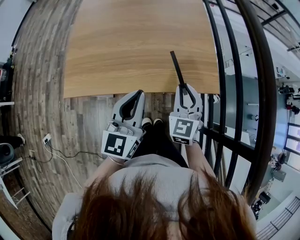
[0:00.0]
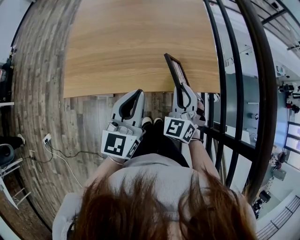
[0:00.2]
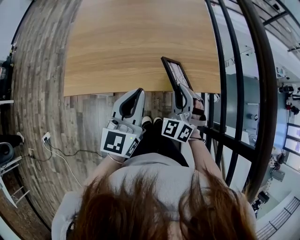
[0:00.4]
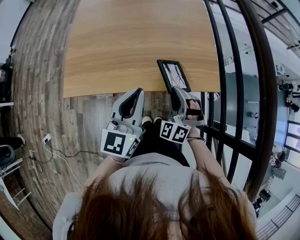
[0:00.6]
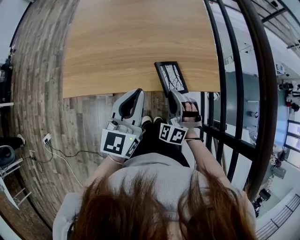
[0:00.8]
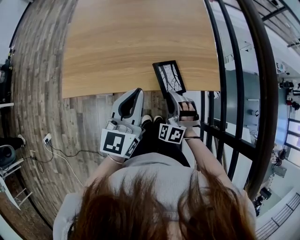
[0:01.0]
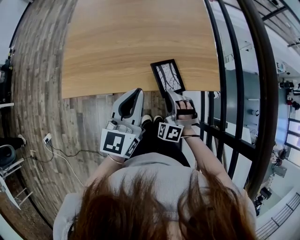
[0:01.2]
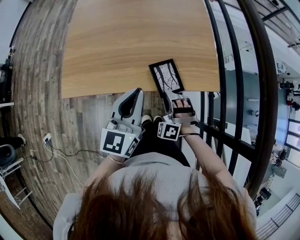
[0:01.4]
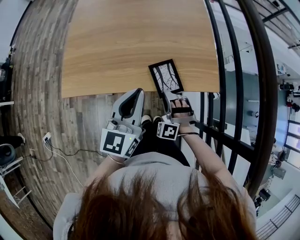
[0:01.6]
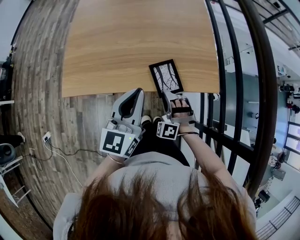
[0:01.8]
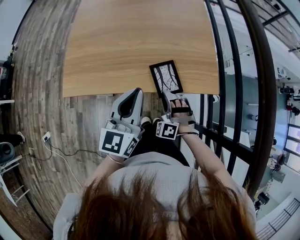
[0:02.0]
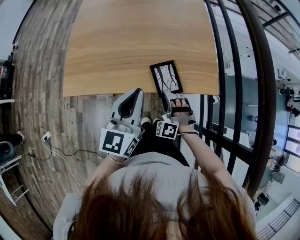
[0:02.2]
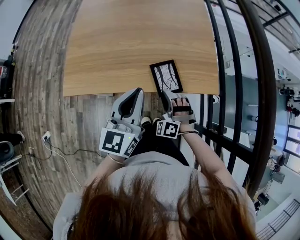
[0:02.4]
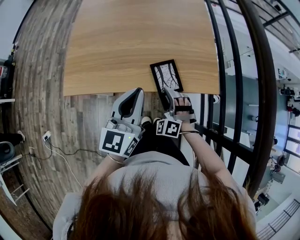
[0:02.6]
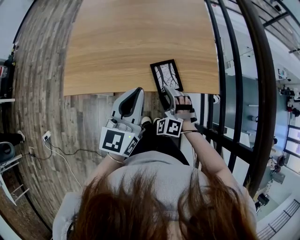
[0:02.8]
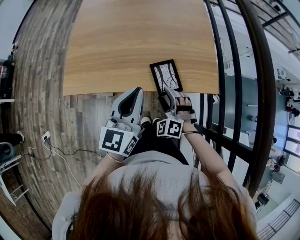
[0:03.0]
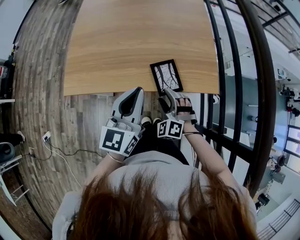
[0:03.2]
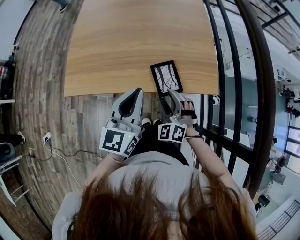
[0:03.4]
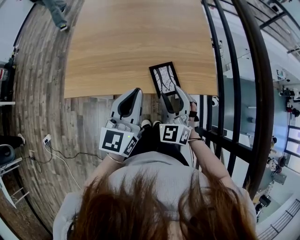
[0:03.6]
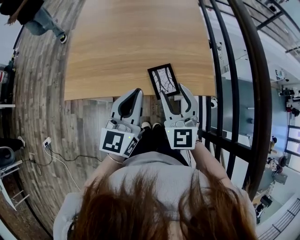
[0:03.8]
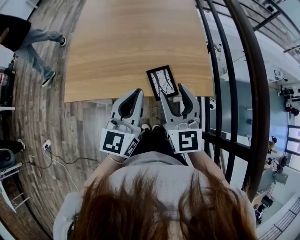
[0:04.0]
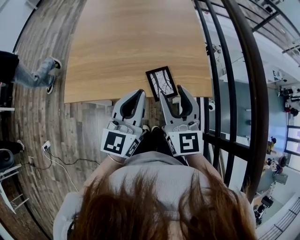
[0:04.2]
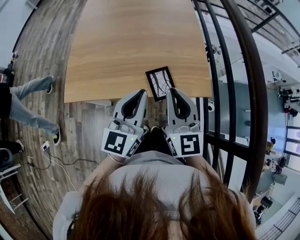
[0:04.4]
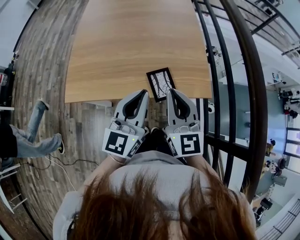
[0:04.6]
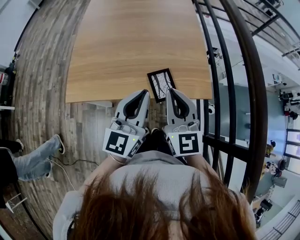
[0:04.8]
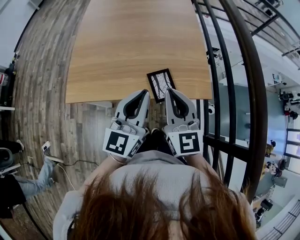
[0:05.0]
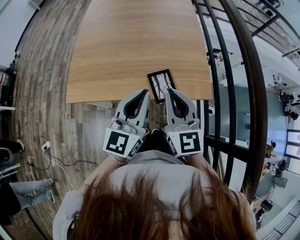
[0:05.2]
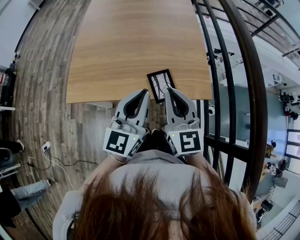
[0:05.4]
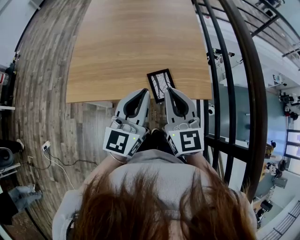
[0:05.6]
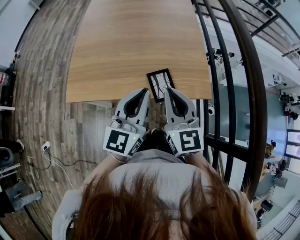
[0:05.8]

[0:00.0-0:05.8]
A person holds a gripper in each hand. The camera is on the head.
0:00.0 to 0:01.4: The right gripper goes some 15 cm downward, and rolls counterclockwise, seen from behind, by approximately 60 degrees.
0:01.4 to 0:02.8: The right gripper opens up.
0:02.8 to 0:04.4: The right gripper goes roughly 25 cm upward, twists about 60 degrees clockwise, seen from behind, and closes up.
0:04.4 to 0:05.8: The grippers stay close to where they were, moving slightly.

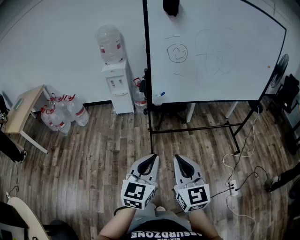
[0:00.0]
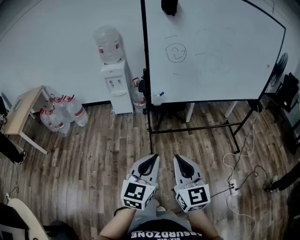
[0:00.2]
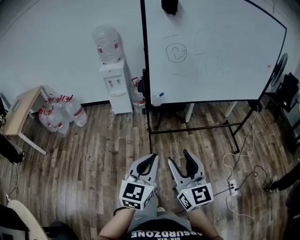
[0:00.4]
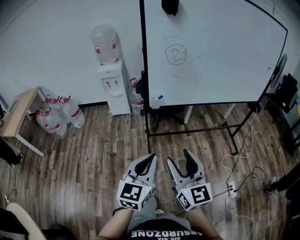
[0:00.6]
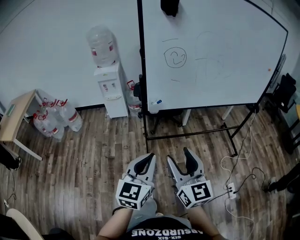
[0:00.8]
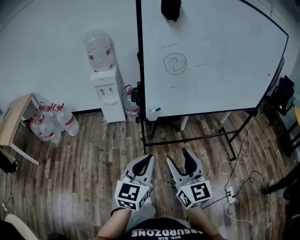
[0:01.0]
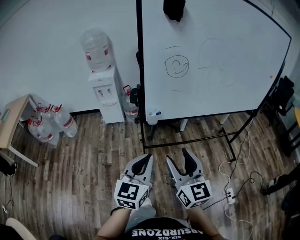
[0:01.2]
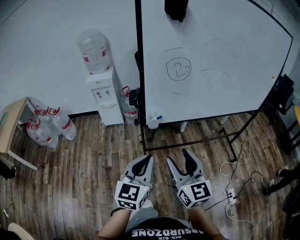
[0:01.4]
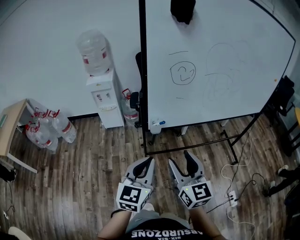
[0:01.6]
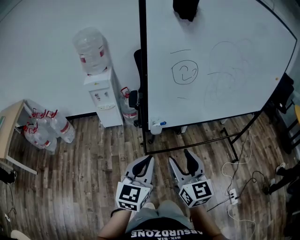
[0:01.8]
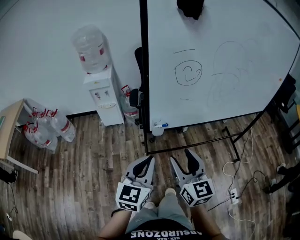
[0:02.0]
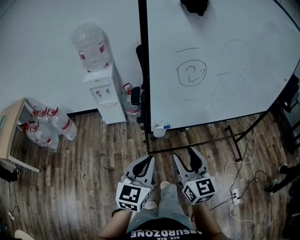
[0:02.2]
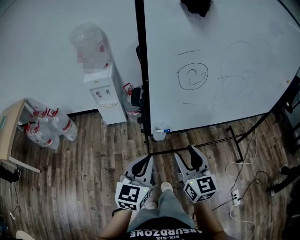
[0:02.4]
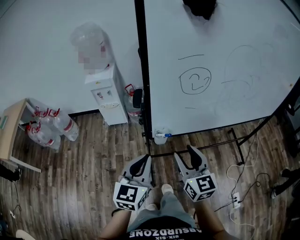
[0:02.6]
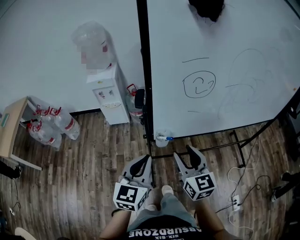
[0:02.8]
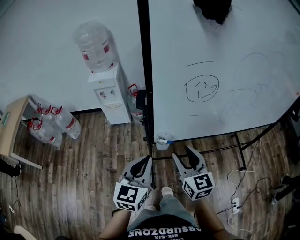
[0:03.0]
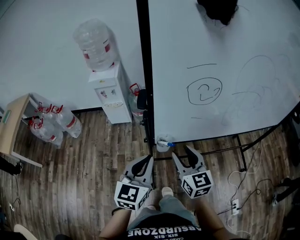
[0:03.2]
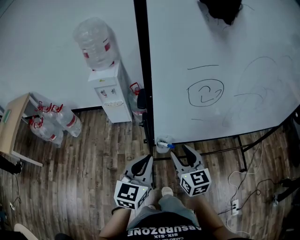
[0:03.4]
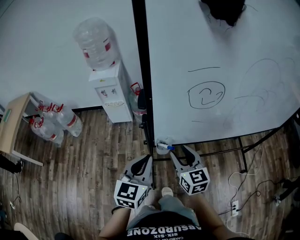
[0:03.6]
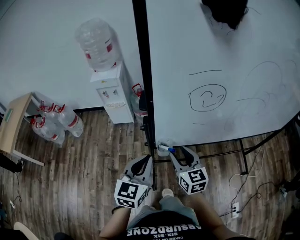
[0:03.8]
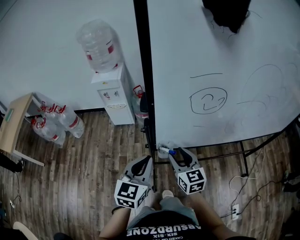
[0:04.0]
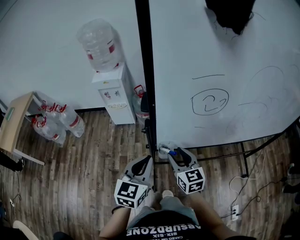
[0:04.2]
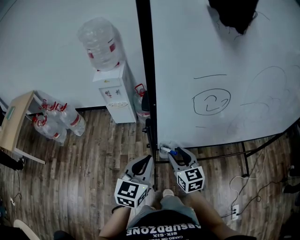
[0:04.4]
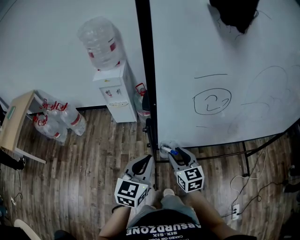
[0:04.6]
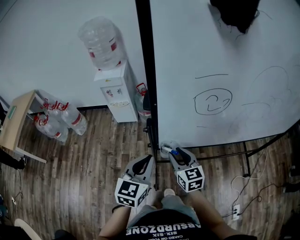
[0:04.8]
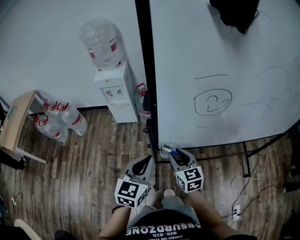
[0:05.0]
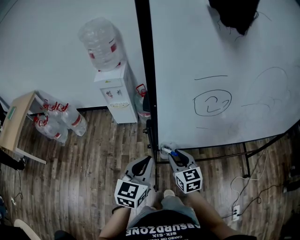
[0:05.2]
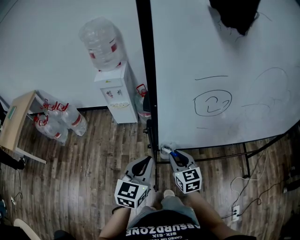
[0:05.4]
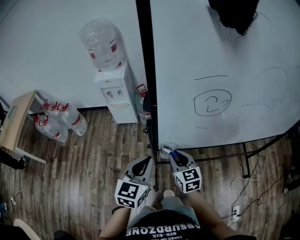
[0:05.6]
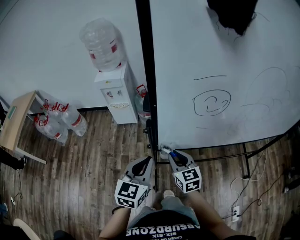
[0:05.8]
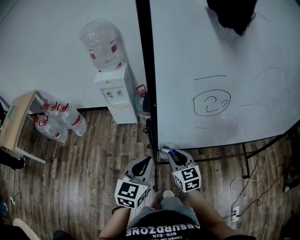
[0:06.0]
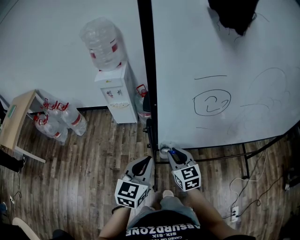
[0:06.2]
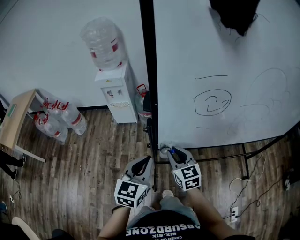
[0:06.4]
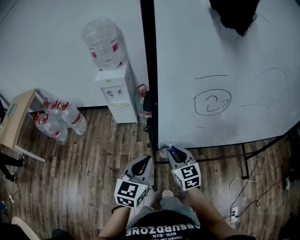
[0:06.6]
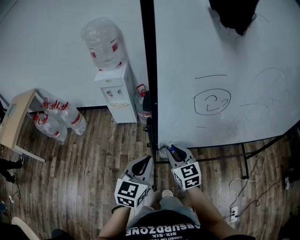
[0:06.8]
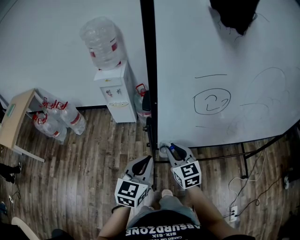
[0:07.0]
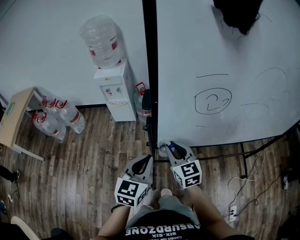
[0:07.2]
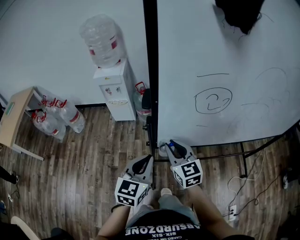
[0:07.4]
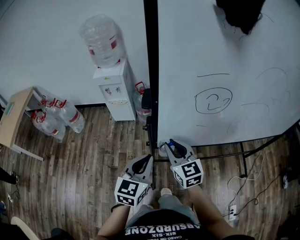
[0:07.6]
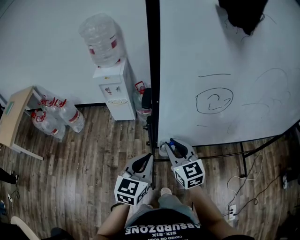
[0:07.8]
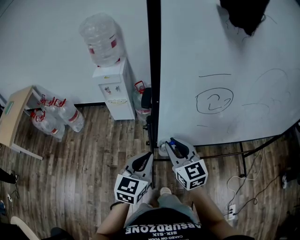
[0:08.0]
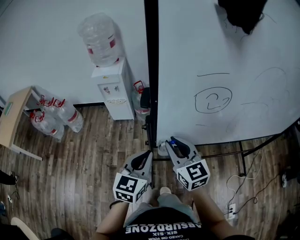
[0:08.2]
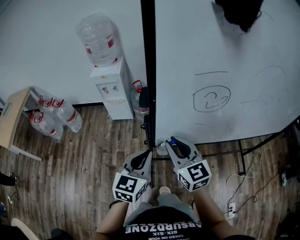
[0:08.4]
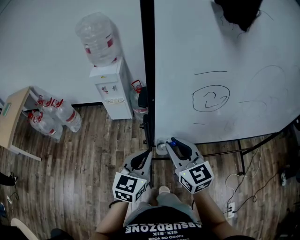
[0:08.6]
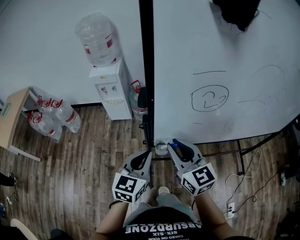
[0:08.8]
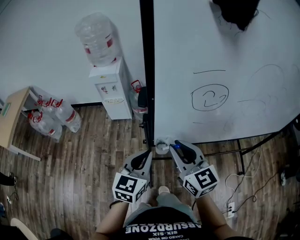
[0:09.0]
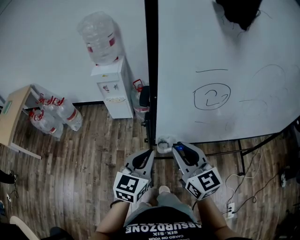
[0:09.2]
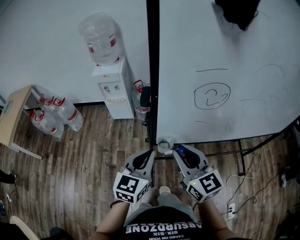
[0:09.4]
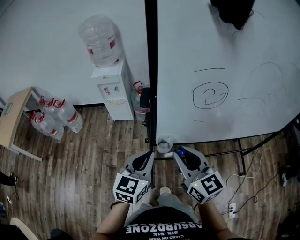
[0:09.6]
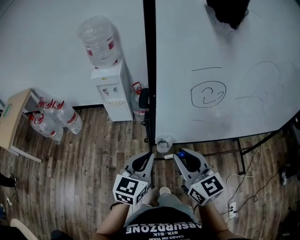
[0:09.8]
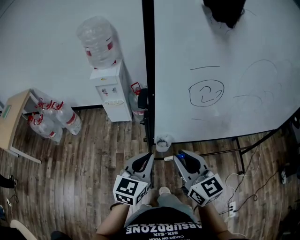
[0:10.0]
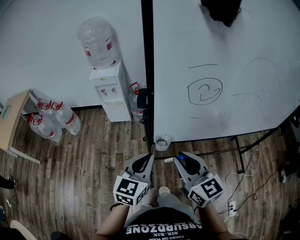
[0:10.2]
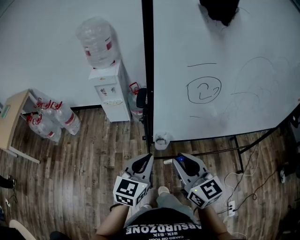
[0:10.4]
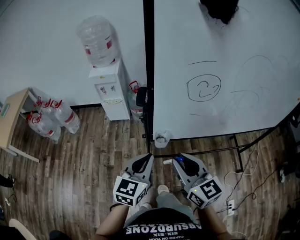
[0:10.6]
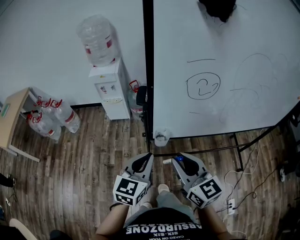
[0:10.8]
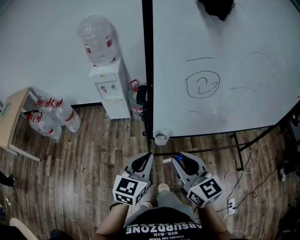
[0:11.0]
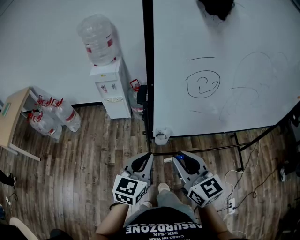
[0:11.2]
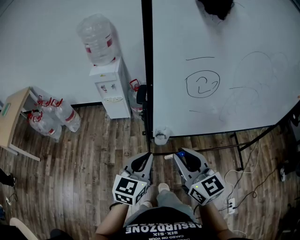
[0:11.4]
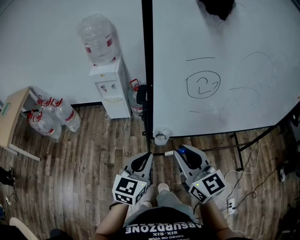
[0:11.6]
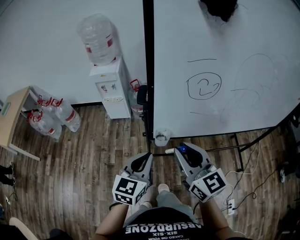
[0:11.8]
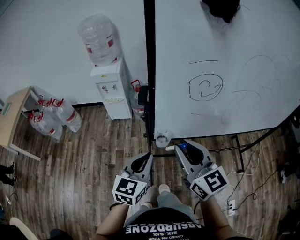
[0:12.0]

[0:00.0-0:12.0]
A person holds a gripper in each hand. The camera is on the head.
0:00.0 to 0:01.6: Both grippers move forward, some 25 cm. The right gripper opens.
0:01.6 to 0:03.0: The two grippers go approximately 15 cm forward.
0:03.0 to 0:04.4: The left gripper heads forward, covering about 5 cm; the right gripper goes some 10 cm downward and forward.
0:04.4 to 0:06.0: The right gripper closes its fingers.
0:06.0 to 0:07.6: The right gripper travels upward by about 5 cm.
0:07.6 to 0:09.0: The right gripper is displaced upward by roughly 5 cm.
0:09.0 to 0:10.4: The right gripper is displaced backward by approximately 10 cm.
0:10.4 to 0:12.0: The grippers move only a little.

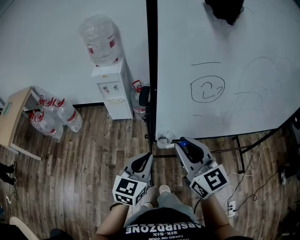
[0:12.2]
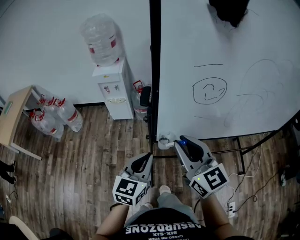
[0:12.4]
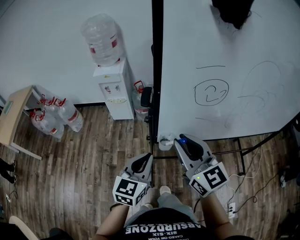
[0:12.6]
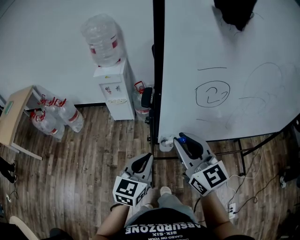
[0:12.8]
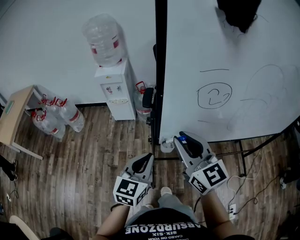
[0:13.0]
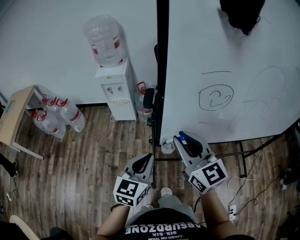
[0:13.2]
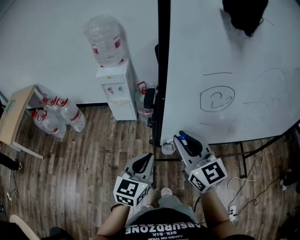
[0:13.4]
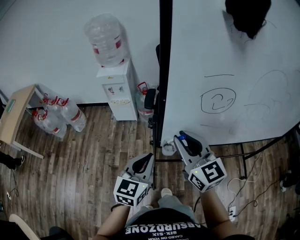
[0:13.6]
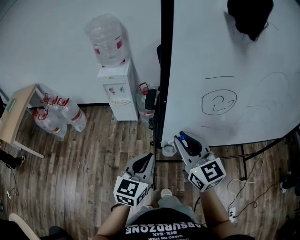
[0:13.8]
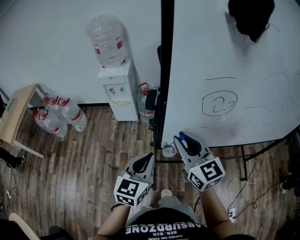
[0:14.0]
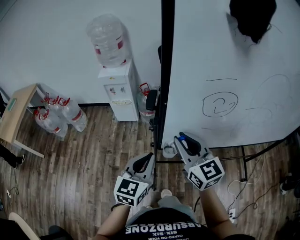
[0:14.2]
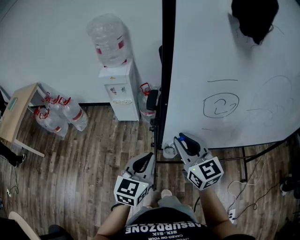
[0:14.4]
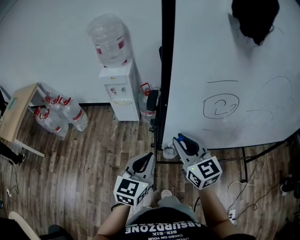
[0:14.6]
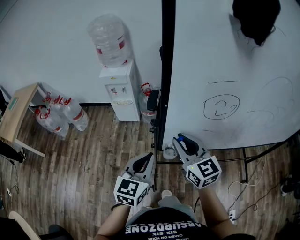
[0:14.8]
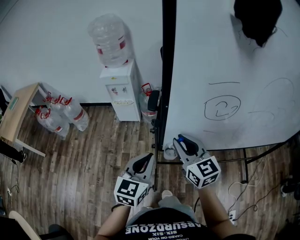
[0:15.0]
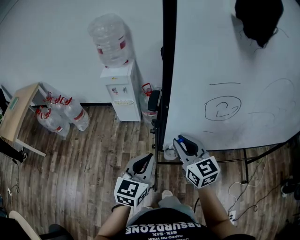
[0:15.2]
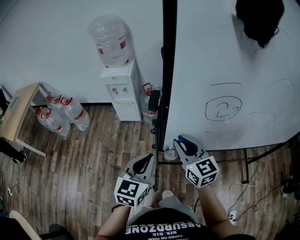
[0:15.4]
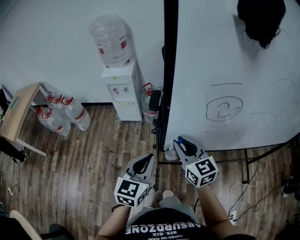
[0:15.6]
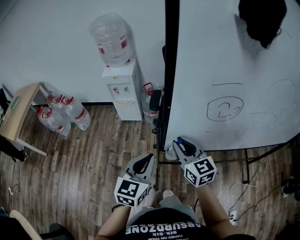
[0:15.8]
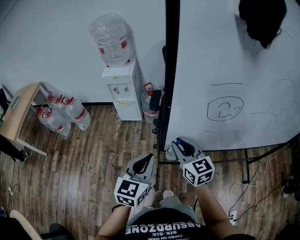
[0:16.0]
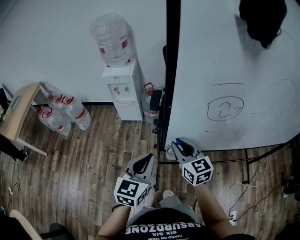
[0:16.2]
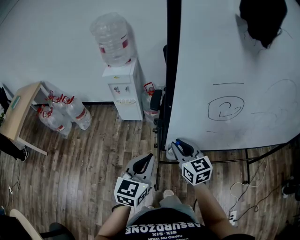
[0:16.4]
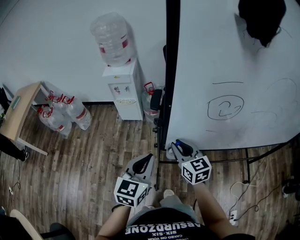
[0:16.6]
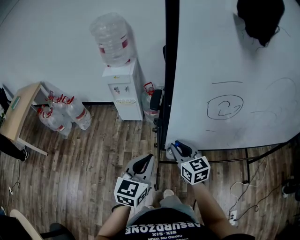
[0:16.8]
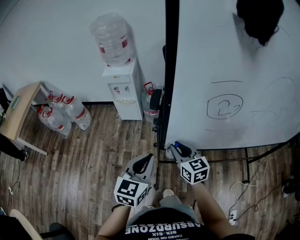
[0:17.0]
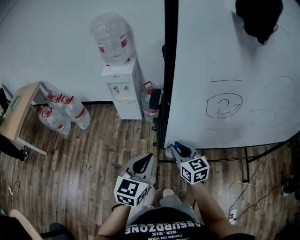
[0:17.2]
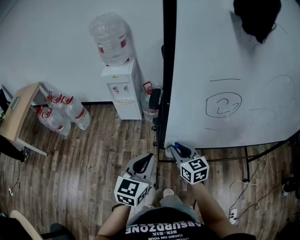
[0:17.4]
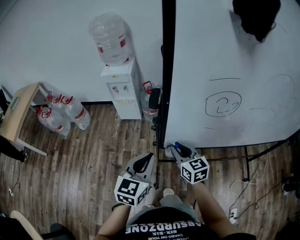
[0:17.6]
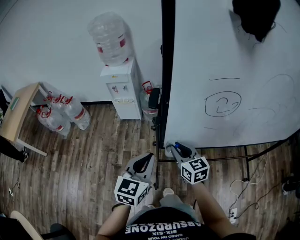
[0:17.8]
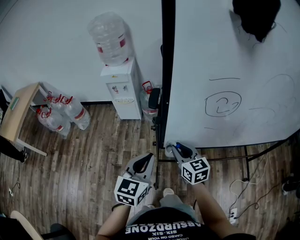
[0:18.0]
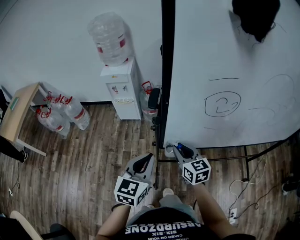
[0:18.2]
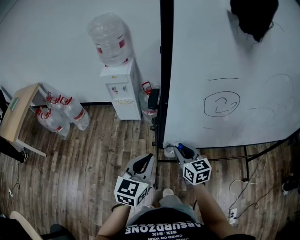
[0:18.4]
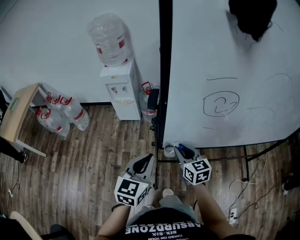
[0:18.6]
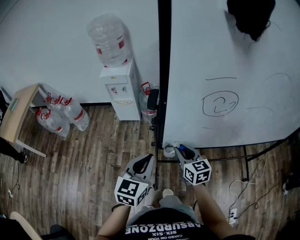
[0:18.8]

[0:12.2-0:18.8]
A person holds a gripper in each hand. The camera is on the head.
0:12.2 to 0:13.8: The right gripper heads forward, covering some 5 cm.
0:13.8 to 0:15.4: The right gripper shifts approximately 5 cm downward.
0:15.4 to 0:17.2: The right gripper shifts roughly 10 cm downward.
0:17.2 to 0:18.8: The grippers make only small movements.
